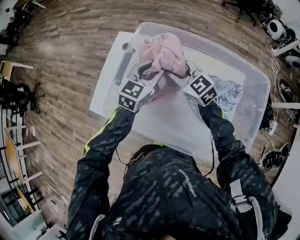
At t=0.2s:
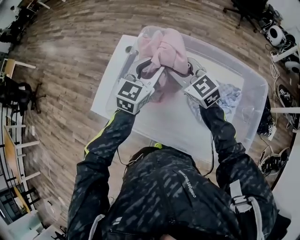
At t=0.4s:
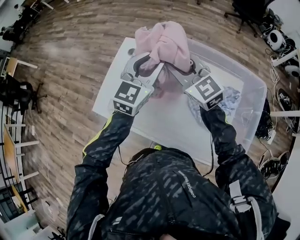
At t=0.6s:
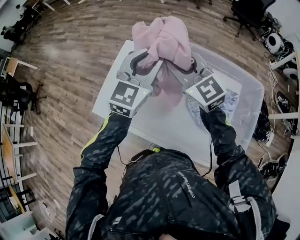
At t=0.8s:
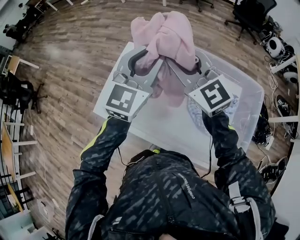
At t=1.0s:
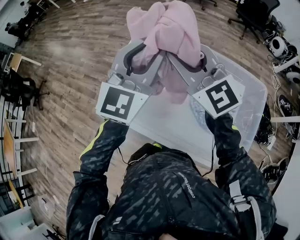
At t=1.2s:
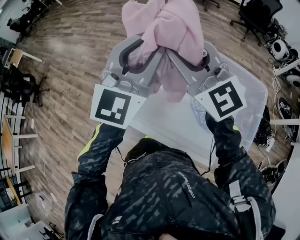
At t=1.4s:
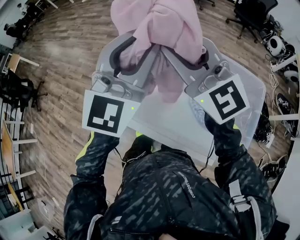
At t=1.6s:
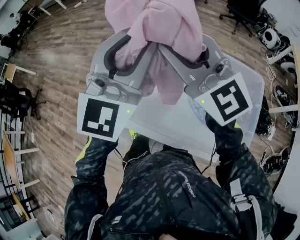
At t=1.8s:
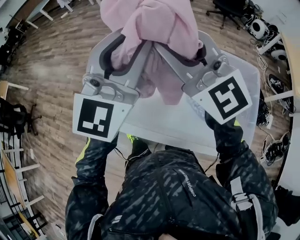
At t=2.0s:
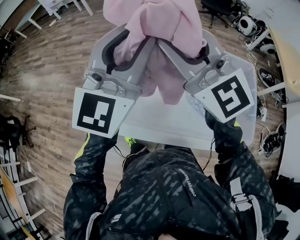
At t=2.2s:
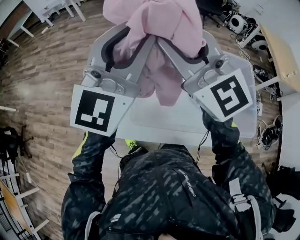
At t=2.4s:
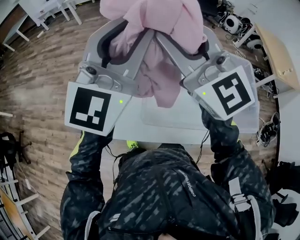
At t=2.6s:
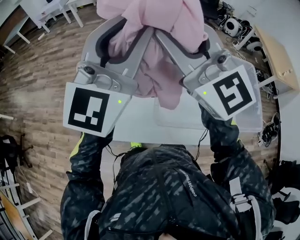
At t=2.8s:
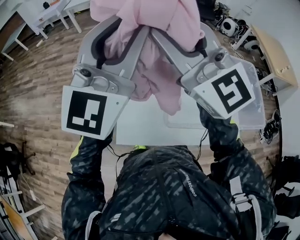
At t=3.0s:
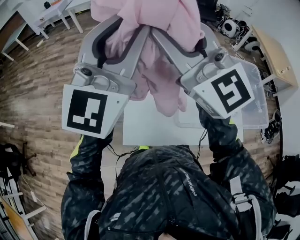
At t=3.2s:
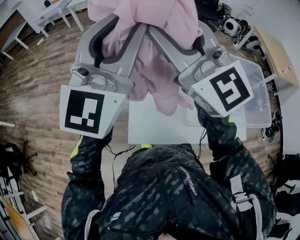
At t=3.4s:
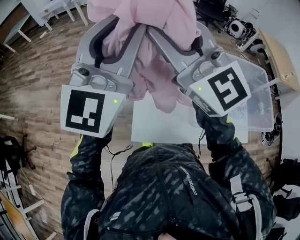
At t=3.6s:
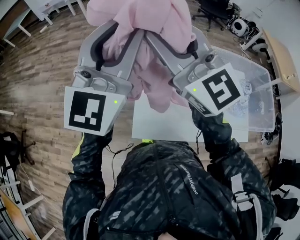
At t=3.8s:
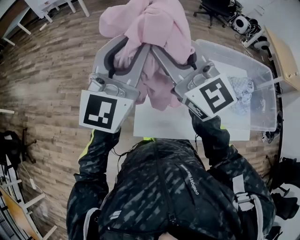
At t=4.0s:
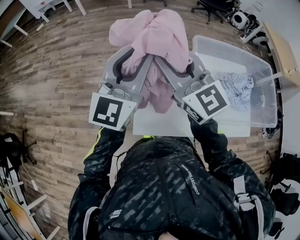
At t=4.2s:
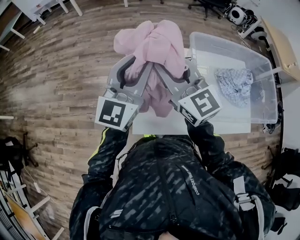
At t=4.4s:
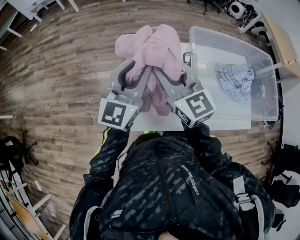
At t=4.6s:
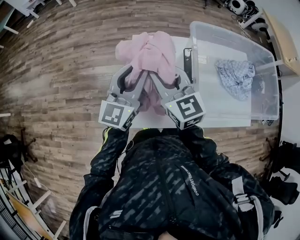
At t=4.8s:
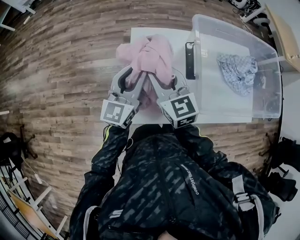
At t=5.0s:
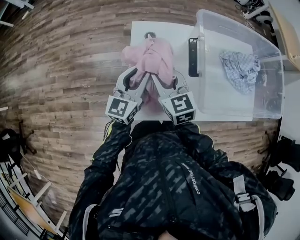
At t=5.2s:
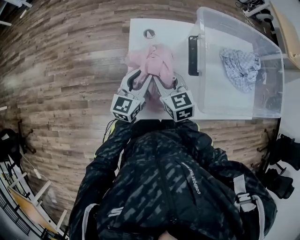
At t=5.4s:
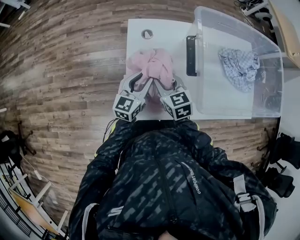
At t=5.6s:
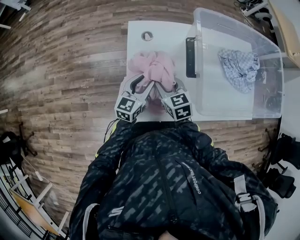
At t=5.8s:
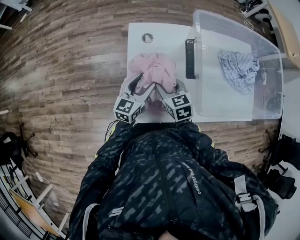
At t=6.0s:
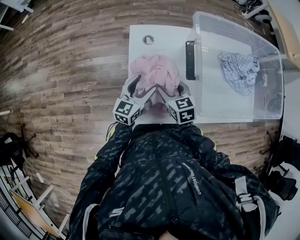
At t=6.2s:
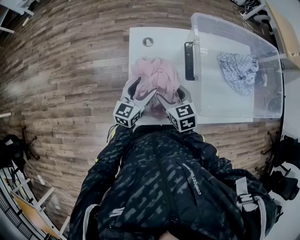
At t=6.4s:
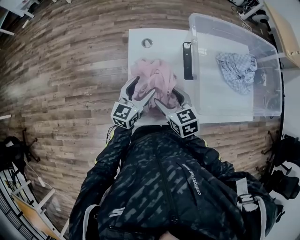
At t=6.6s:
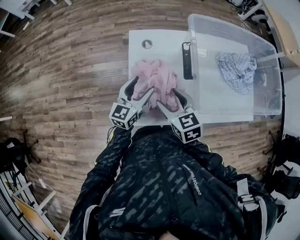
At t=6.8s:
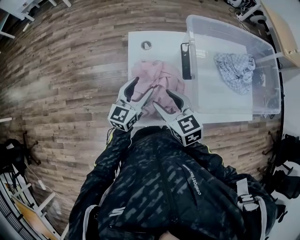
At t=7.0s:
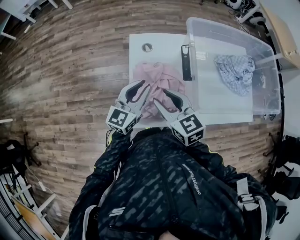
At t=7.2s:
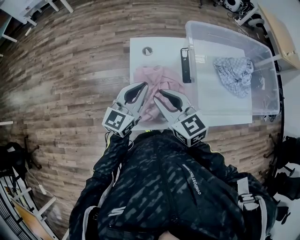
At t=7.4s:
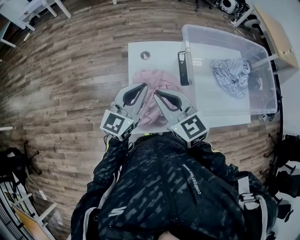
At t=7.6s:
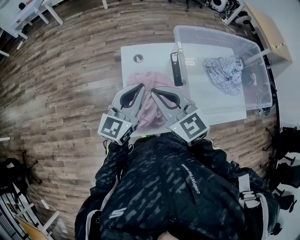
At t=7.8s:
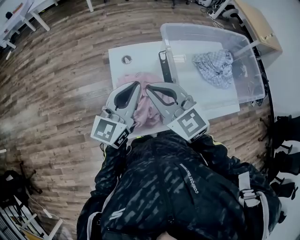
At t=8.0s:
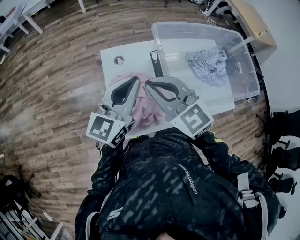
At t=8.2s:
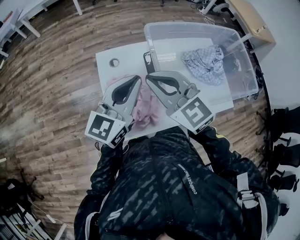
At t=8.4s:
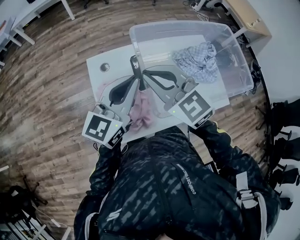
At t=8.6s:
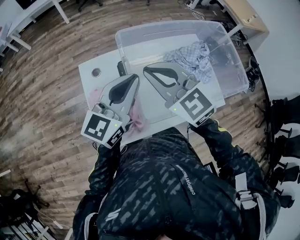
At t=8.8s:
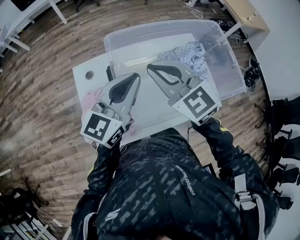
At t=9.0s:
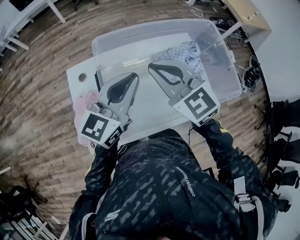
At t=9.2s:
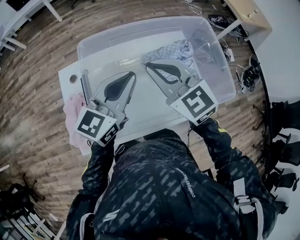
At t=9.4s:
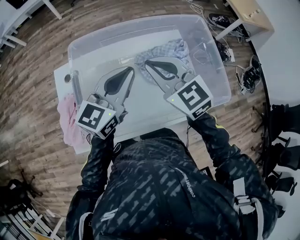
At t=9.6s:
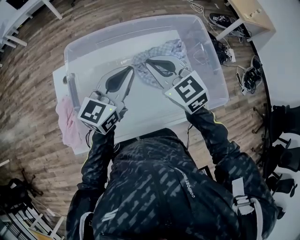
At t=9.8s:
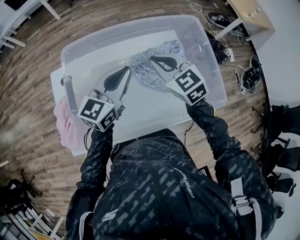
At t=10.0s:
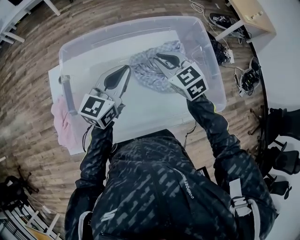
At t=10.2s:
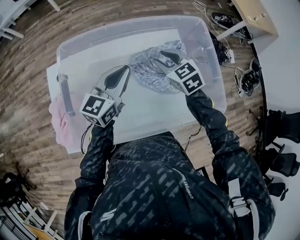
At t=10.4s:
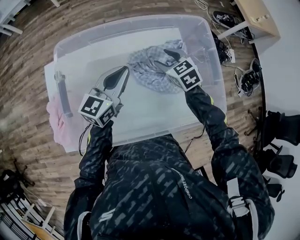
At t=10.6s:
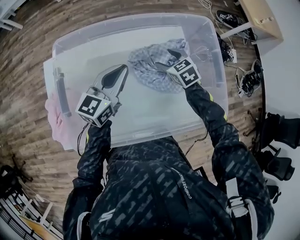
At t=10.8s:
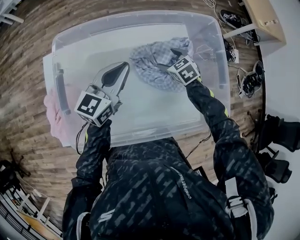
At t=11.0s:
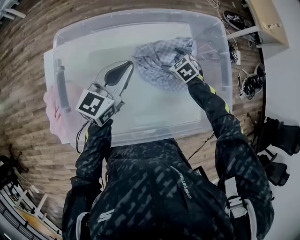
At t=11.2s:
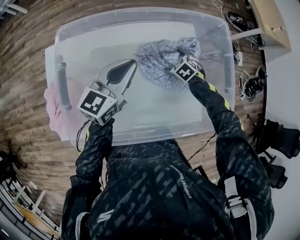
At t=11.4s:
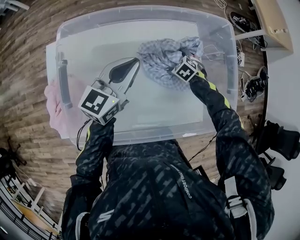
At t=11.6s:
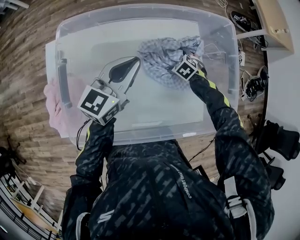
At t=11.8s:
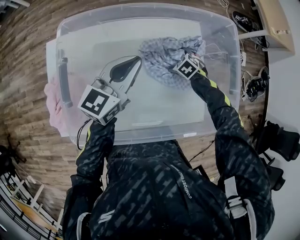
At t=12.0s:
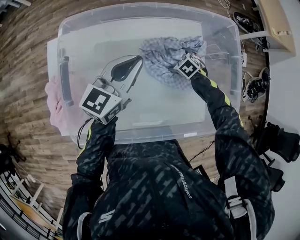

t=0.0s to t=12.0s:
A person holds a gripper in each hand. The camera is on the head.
t=0.0s to t=1.6s: The two grippers go some 30 cm upward. The right gripper rotates roughly 40 degrees; the left gripper turns by about 40 degrees.
t=1.6s to t=3.0s: Both grippers travel together to the left, roughly 25 cm. The left gripper swivels roughly 20 degrees, while the right gripper turns by about 20 degrees.
t=3.0s to t=4.4s: The grippers both shift downward by roughly 25 cm. The left gripper rotates about 30 degrees; the right gripper turns by about 30 degrees.
t=4.4s to t=6.0s: The two grippers go about 25 cm downward. The left gripper changes its angle by some 30 degrees, and opens. The right gripper tips its fingers downward by approximately 30 degrees.
t=6.0s to t=7.6s: Both grippers move upward, some 20 cm. The right gripper turns by approximately 30 degrees, and closes its fingers. Meanwhile the left gripper closes its fingers.
t=7.6s to t=9.0s: The two grippers go about 30 cm to the right.
t=9.0s to t=10.4s: The left gripper heads downward, to the right and forward, covering approximately 20 cm. Meanwhile the right gripper is displaced downward, to the right and forward by approximately 35 cm, rotates about 30 degrees, and opens up.
t=10.4s to t=12.0s: The right gripper is displaced downward by about 20 cm, swivels about 30 degrees, and opens up.

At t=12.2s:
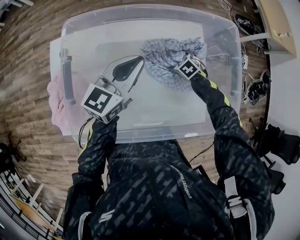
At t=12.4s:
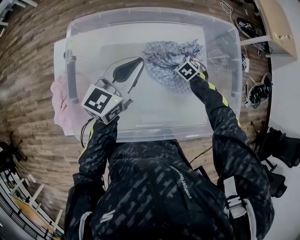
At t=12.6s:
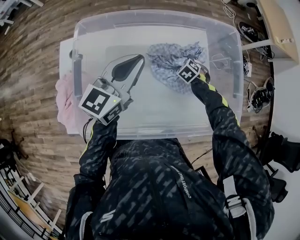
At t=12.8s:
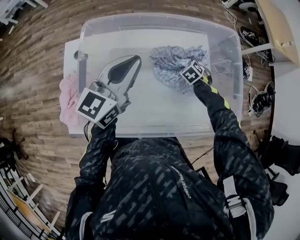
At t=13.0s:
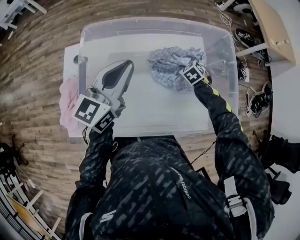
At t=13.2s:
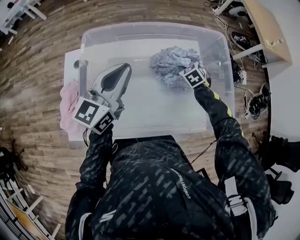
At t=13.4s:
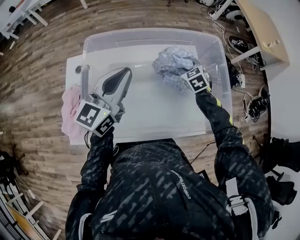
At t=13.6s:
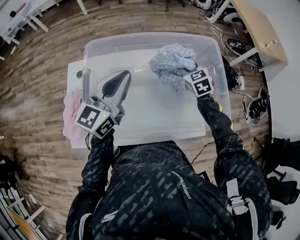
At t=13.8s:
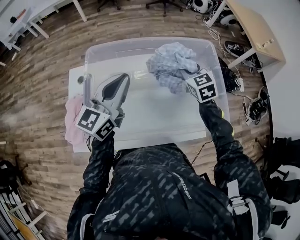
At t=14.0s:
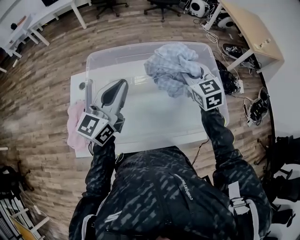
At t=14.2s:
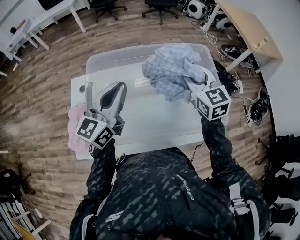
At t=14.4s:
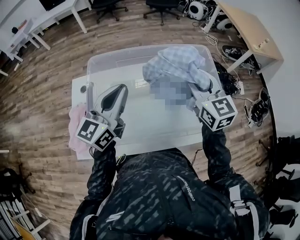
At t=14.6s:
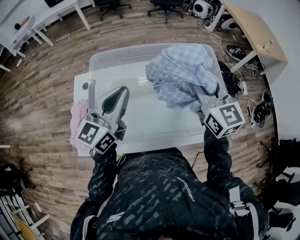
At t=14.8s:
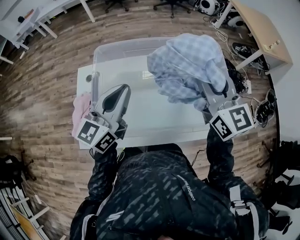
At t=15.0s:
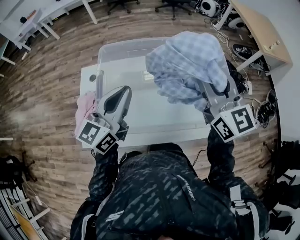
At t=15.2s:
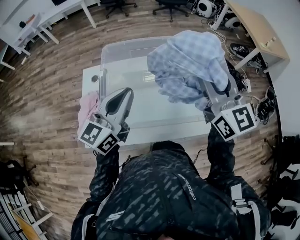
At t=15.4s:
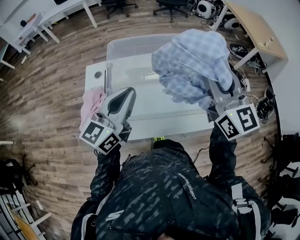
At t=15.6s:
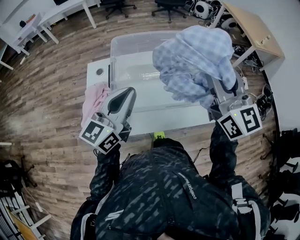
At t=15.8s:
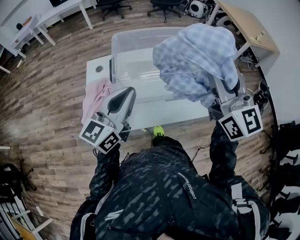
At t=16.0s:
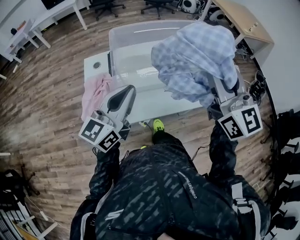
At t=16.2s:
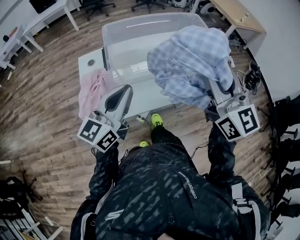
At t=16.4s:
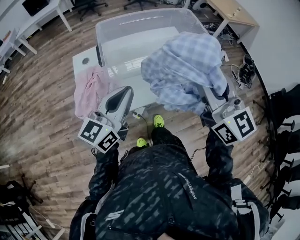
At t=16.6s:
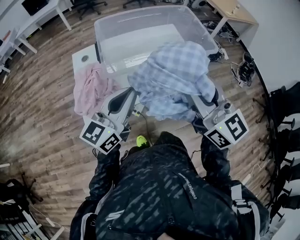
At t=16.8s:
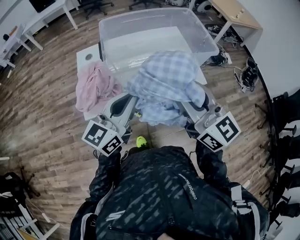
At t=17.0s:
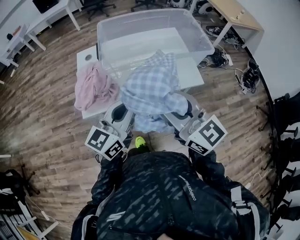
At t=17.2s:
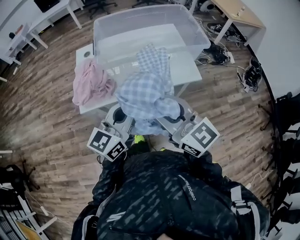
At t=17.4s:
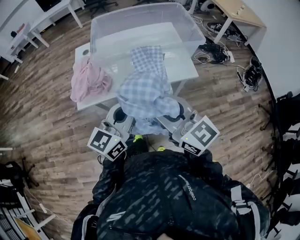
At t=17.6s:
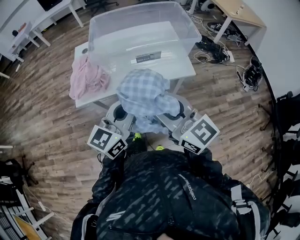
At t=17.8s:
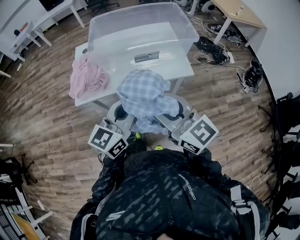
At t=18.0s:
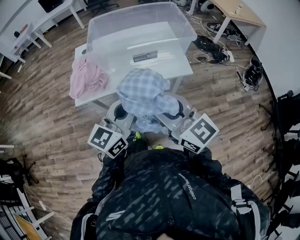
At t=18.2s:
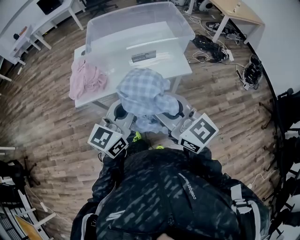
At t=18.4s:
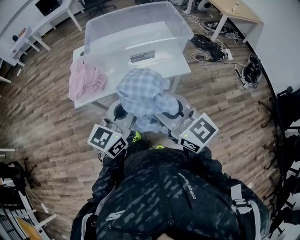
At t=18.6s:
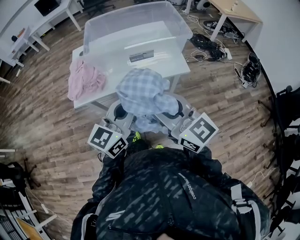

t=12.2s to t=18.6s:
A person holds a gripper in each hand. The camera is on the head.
t=12.2s to t=13.8s: The left gripper is displaced upward and backward by about 15 cm; the right gripper moves upward, approximately 30 cm, angles its fingers upward, by about 40 degrees, and closes its fingers.
t=13.8s to t=15.4s: The right gripper heads upward and backward, covering about 30 cm, and tilts its fingers roughly 40 degrees upward, while the left gripper goes about 15 cm backward.
t=15.4s to t=17.0s: The grippers both shift backward by about 30 cm.
t=17.0s to t=18.6s: The right gripper travels backward and to the right by approximately 15 cm, while the left gripper moves to the right and backward, approximately 15 cm.

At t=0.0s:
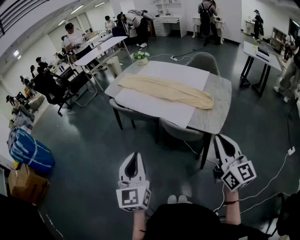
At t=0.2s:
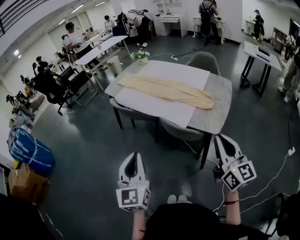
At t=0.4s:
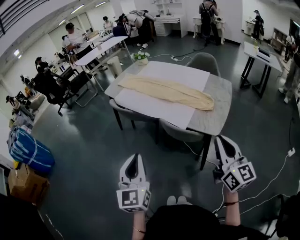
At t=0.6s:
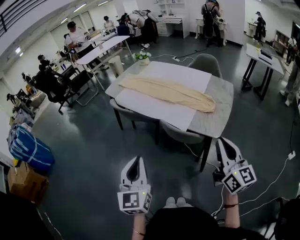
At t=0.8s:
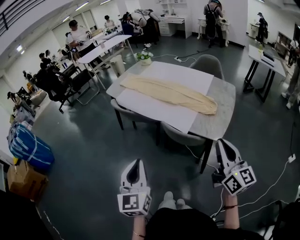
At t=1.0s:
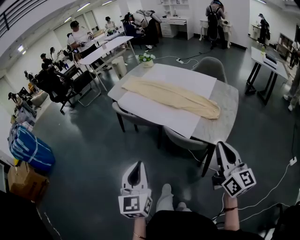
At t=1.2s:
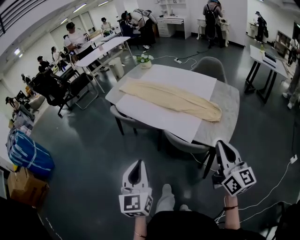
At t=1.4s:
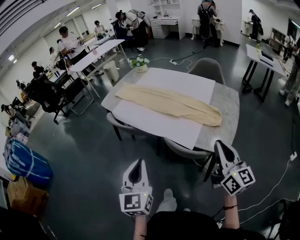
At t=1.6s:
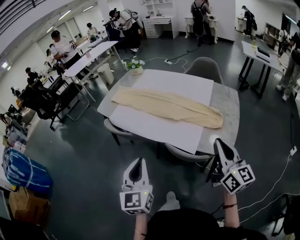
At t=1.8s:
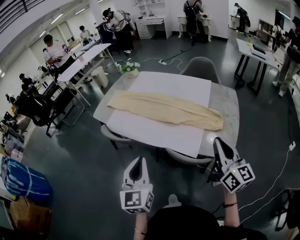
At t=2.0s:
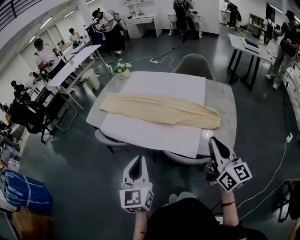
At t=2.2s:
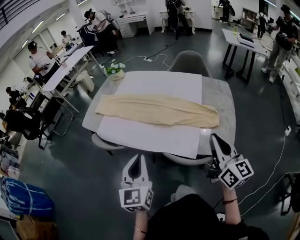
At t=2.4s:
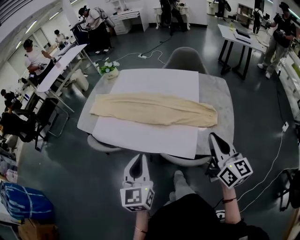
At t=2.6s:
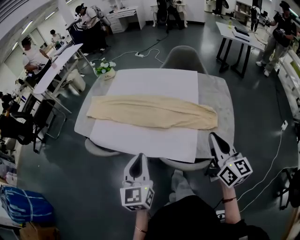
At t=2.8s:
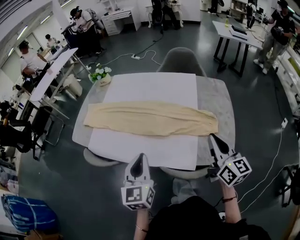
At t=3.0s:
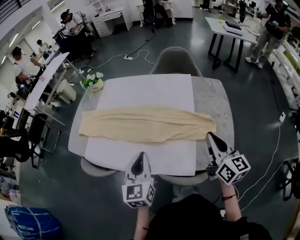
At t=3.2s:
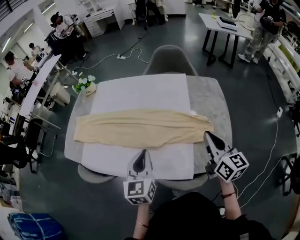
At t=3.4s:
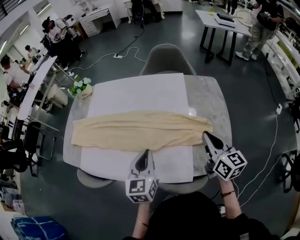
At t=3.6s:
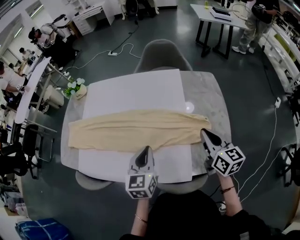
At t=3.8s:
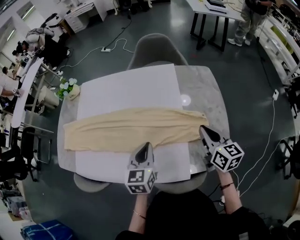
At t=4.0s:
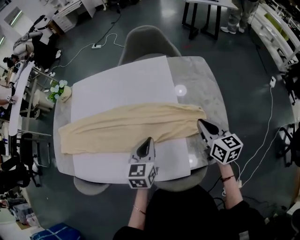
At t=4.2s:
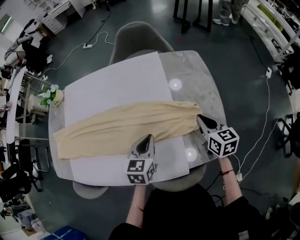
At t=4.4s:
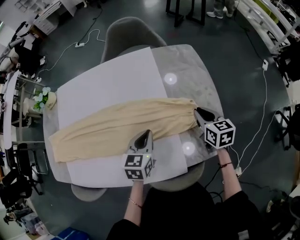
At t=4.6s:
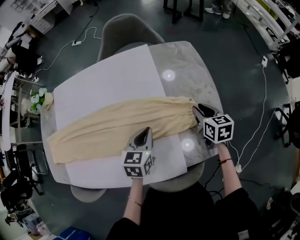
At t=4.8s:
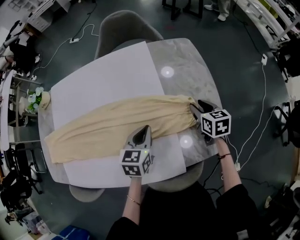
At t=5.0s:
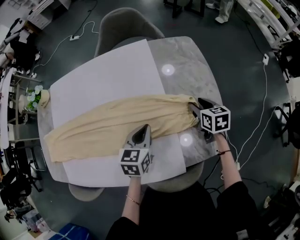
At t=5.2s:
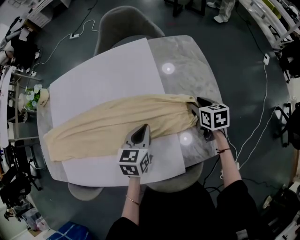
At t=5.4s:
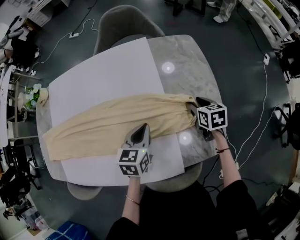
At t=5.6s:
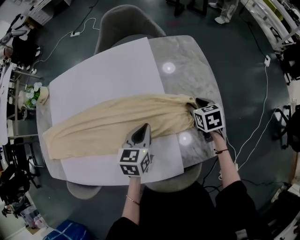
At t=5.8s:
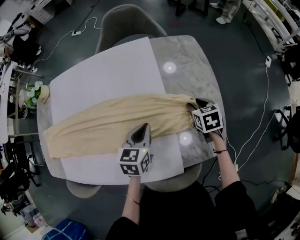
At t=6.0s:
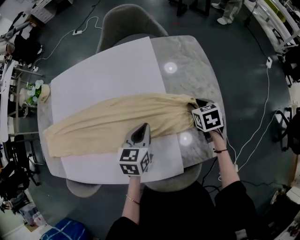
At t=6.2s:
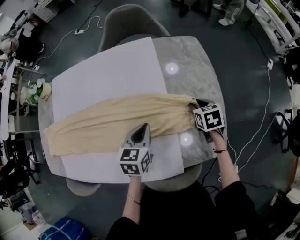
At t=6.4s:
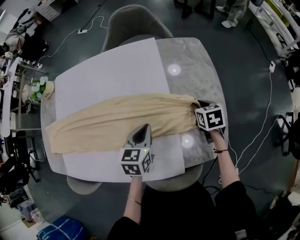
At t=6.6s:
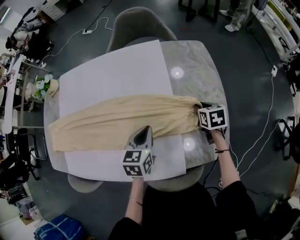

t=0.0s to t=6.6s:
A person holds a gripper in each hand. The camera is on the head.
t=0.0s to t=1.6s: Both grippers move forward, roughly 20 cm.
t=1.6s to t=3.2s: Both grippers move forward, some 30 cm. The right gripper rotates roughly 20 degrees. Meanwhile the left gripper turns by roughly 30 degrees.
t=3.2s to t=5.0s: The right gripper is displaced downward, forward and to the right by some 30 cm, tips its fingers downward by approximately 40 degrees, and opens. Meanwhile the left gripper moves forward, downward and to the right, about 25 cm, and turns by roughly 40 degrees.
t=5.0s to t=6.6s: There are only small adjustments of the grippers.
